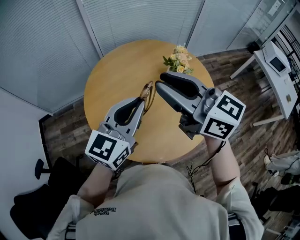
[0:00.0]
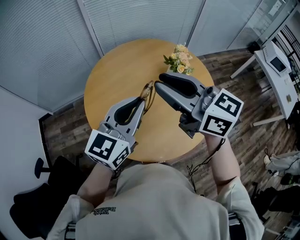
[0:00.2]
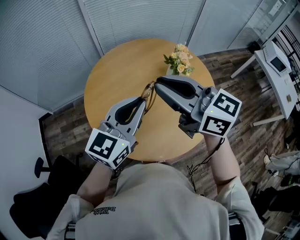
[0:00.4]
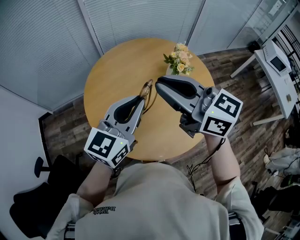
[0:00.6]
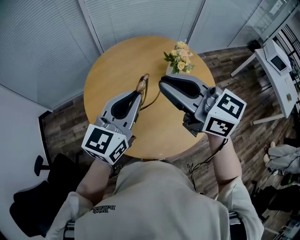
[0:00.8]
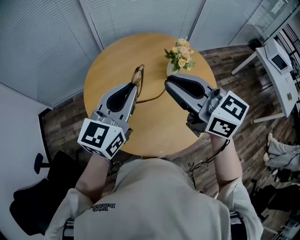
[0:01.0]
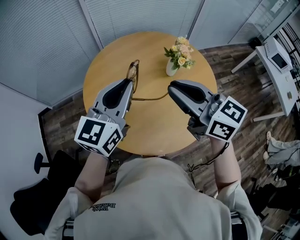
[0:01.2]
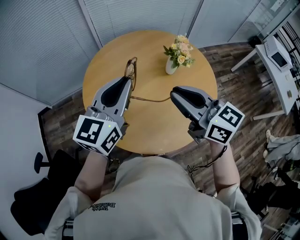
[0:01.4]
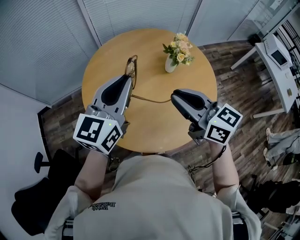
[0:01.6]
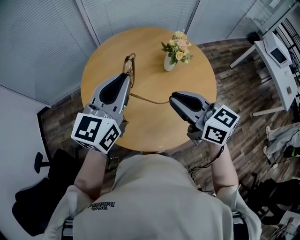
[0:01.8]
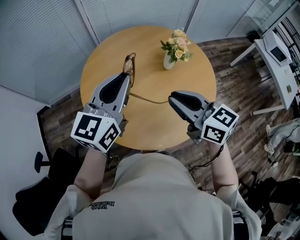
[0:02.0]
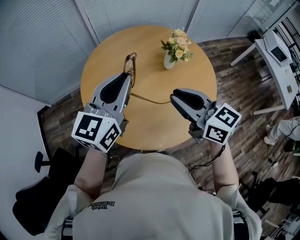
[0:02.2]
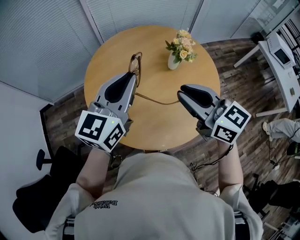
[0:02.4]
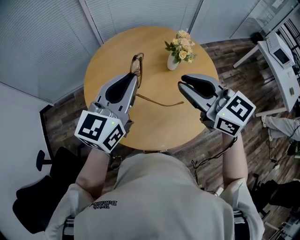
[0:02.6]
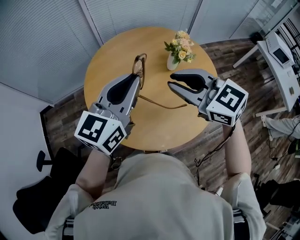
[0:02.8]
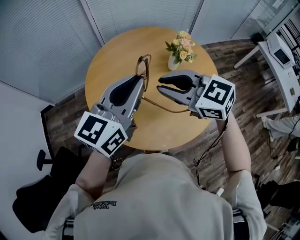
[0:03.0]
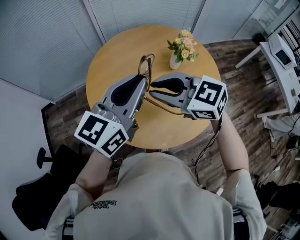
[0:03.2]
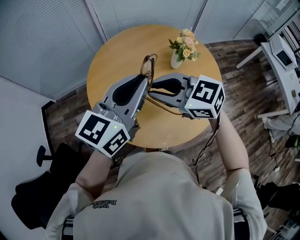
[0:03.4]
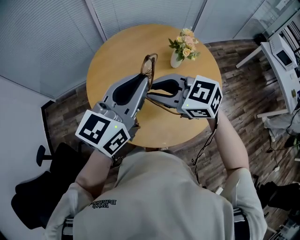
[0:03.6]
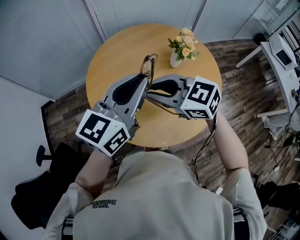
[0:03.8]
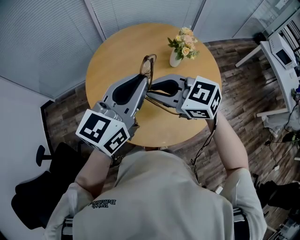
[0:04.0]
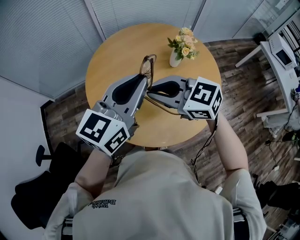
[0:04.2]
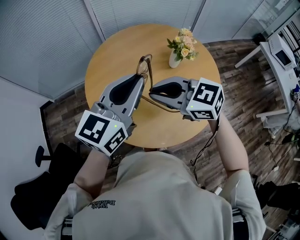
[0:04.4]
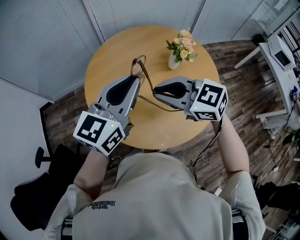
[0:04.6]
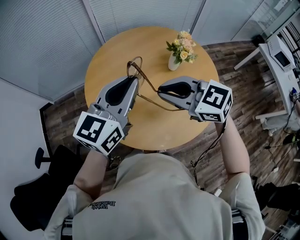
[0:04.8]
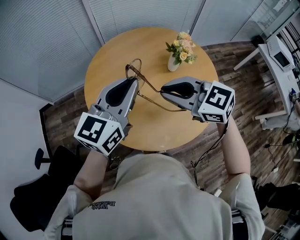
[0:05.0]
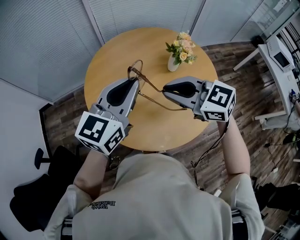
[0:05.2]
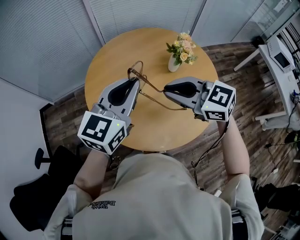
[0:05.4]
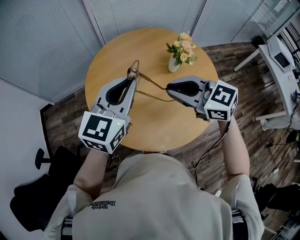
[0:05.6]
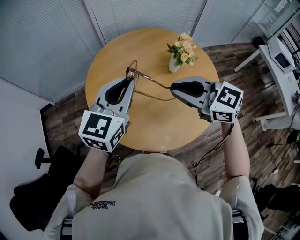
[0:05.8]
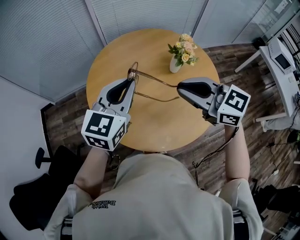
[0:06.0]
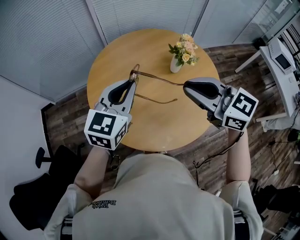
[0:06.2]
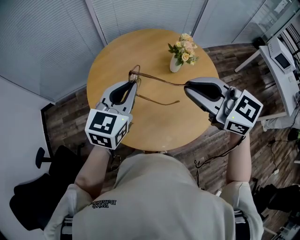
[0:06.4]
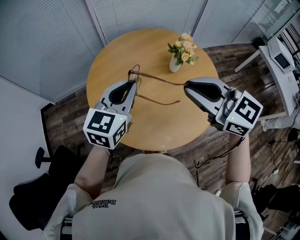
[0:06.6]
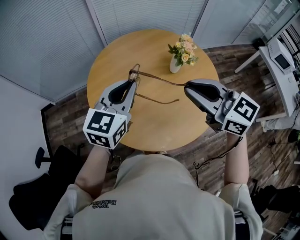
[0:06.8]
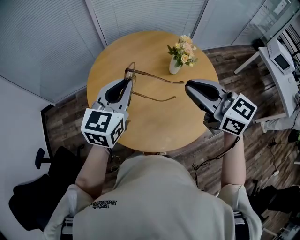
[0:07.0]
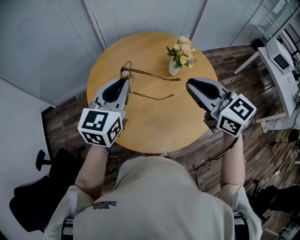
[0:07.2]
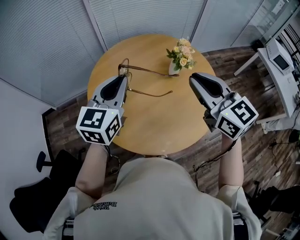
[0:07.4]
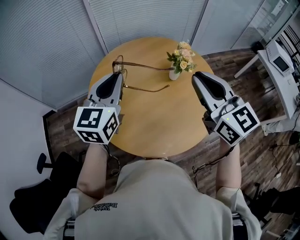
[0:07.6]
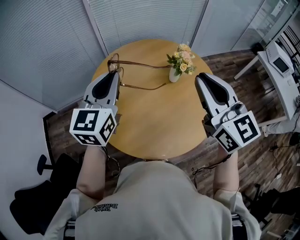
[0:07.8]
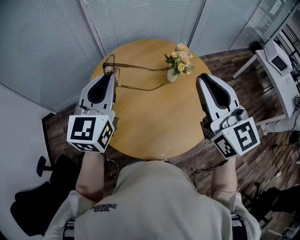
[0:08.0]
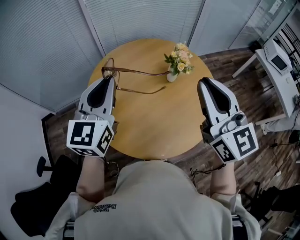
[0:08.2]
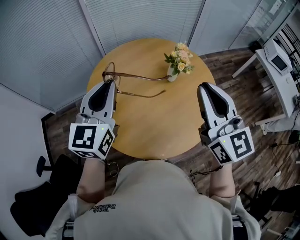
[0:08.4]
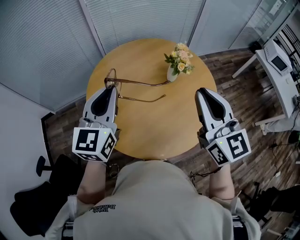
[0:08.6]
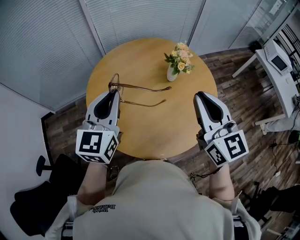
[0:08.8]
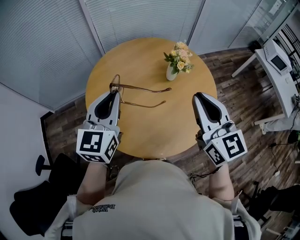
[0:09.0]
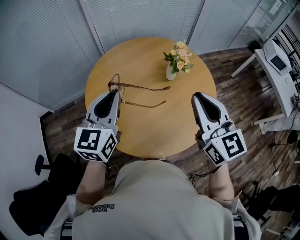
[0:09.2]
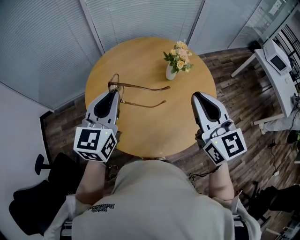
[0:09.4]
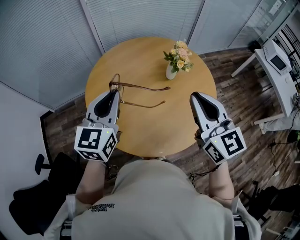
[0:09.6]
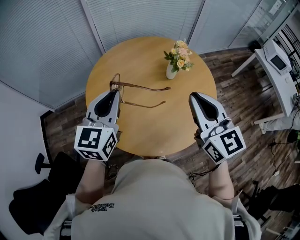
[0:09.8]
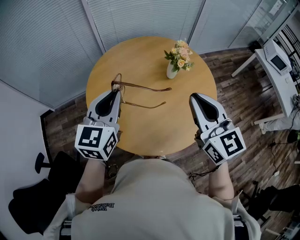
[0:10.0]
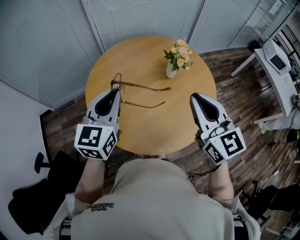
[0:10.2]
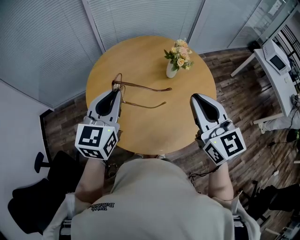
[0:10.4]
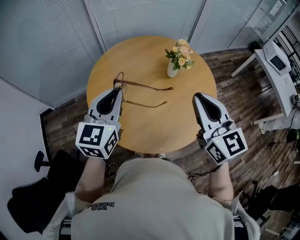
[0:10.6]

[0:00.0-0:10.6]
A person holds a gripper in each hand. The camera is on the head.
0.0 to 1.6 s: The right gripper shifts about 10 cm downward.
1.6 to 3.0 s: The right gripper goes roughly 5 cm to the left, and rotates approximately 30 degrees.
3.0 to 4.6 s: The grippers make only small movements.
4.6 to 6.0 s: The right gripper heads to the right, covering approximately 5 cm.
6.0 to 7.6 s: The right gripper travels upward and to the right by some 10 cm, and changes its angle by some 30 degrees. Meanwhile the left gripper changes place by about 5 cm.
7.6 to 9.0 s: The right gripper changes place by some 5 cm.
9.0 to 10.6 s: The grippers move only a little.

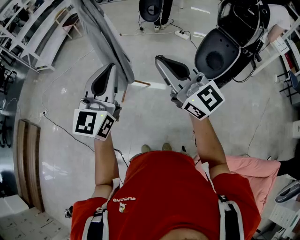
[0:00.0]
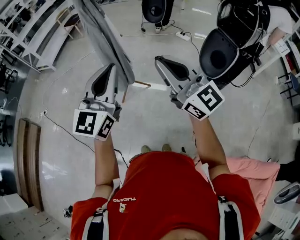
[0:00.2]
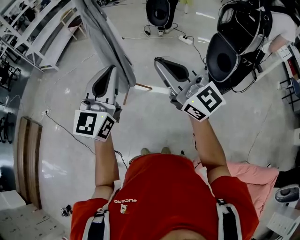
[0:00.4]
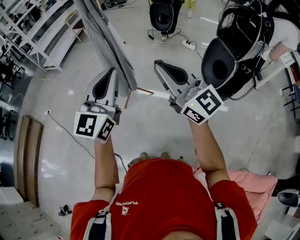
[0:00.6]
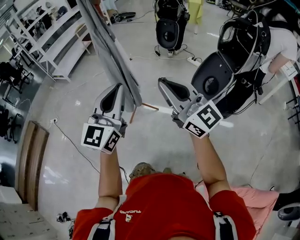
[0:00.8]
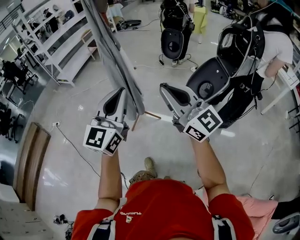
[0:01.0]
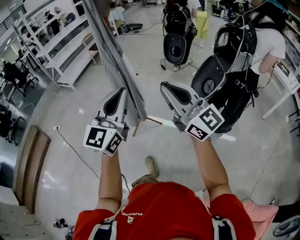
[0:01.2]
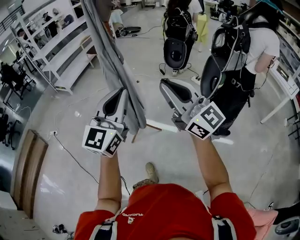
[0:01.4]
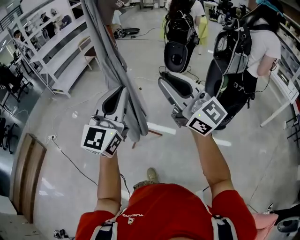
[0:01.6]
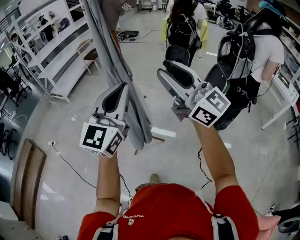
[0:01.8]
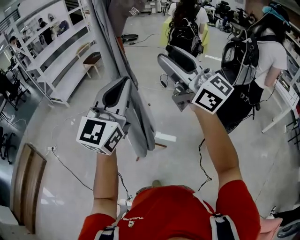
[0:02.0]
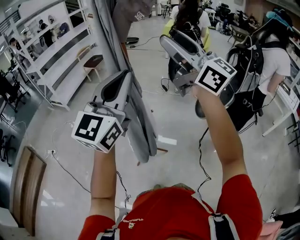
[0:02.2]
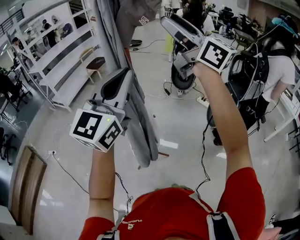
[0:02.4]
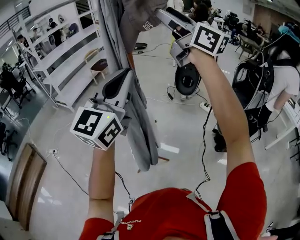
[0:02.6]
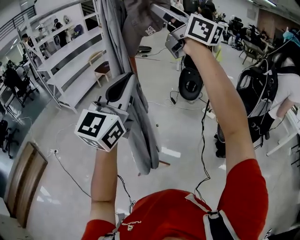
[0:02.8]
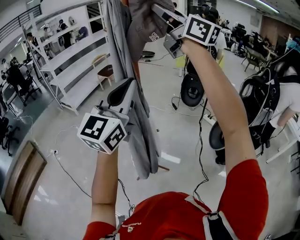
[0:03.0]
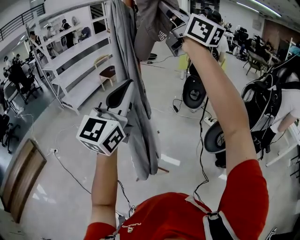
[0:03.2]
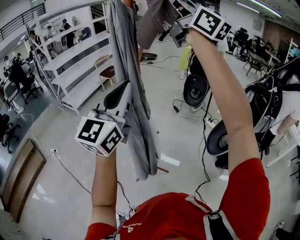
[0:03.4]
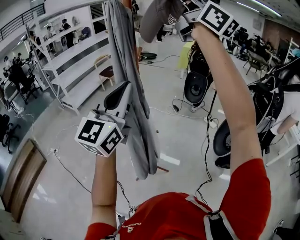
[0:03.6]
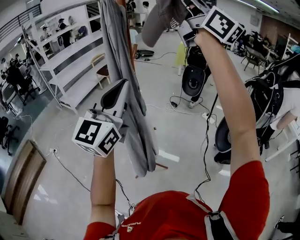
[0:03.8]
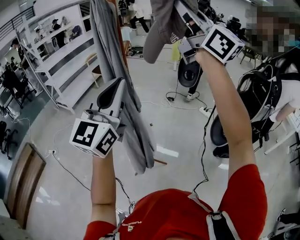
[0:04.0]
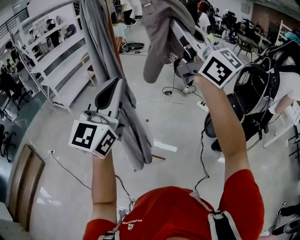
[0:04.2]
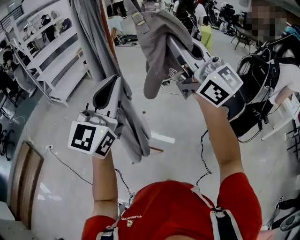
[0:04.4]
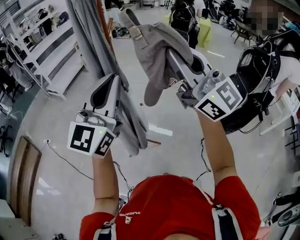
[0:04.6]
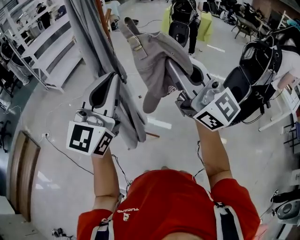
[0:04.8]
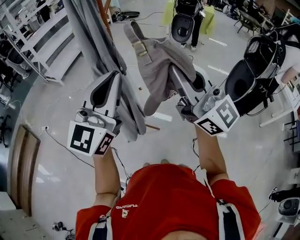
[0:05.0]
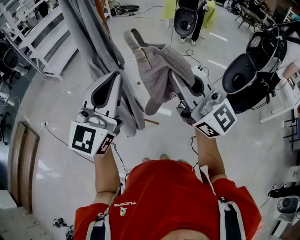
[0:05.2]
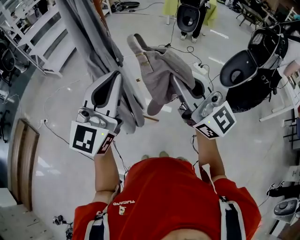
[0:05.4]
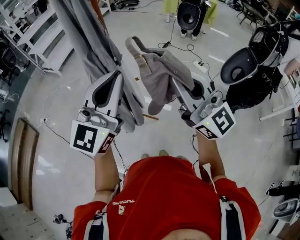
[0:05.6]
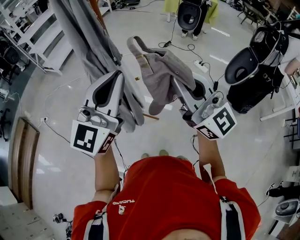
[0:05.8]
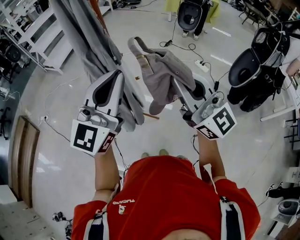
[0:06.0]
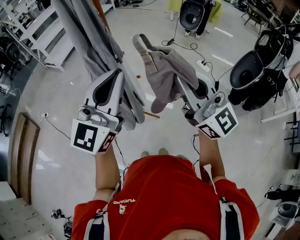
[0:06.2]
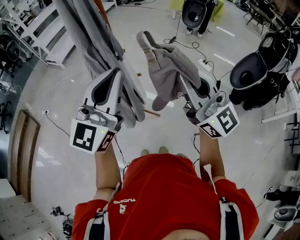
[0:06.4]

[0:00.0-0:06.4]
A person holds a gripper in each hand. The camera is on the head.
0.0 to 1.6 s: Both grippers move forward and upward, roughly 20 cm.
1.6 to 3.2 s: The right gripper heads forward and upward, covering some 50 cm, and opens, then closes once more. The left gripper is displaced forward and upward by roughly 25 cm.
3.2 to 4.8 s: The left gripper travels downward by approximately 10 cm. The right gripper shifts roughly 30 cm downward and backward.
4.8 to 6.4 s: The right gripper goes about 15 cm downward; the left gripper moves downward, some 10 cm.

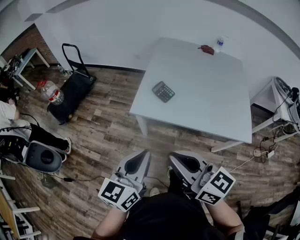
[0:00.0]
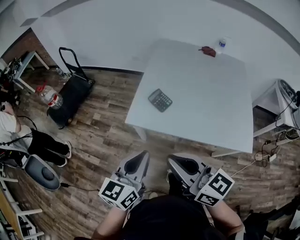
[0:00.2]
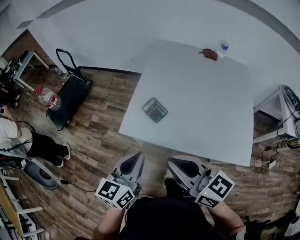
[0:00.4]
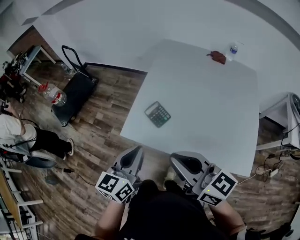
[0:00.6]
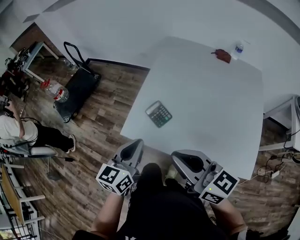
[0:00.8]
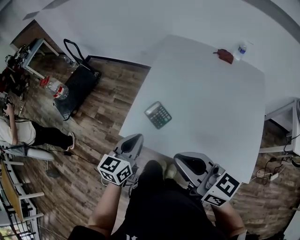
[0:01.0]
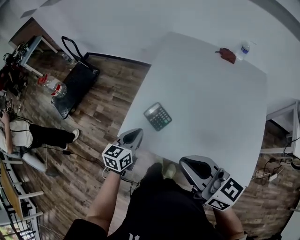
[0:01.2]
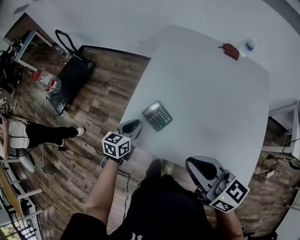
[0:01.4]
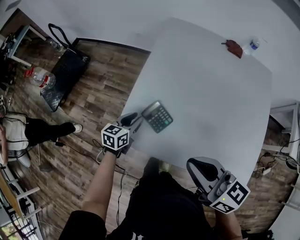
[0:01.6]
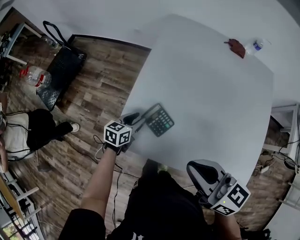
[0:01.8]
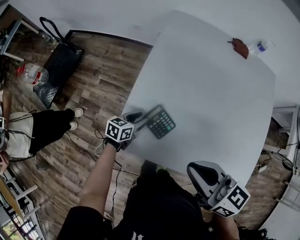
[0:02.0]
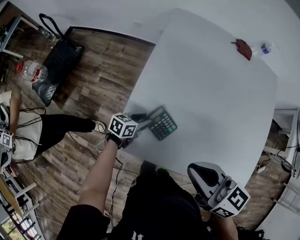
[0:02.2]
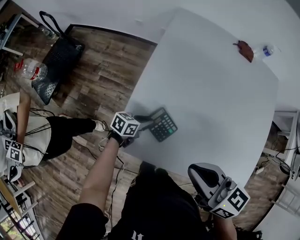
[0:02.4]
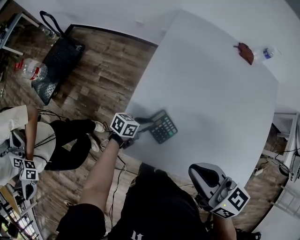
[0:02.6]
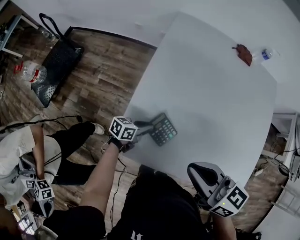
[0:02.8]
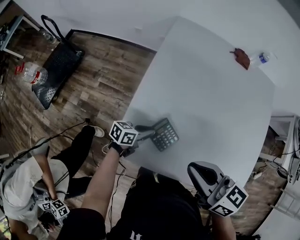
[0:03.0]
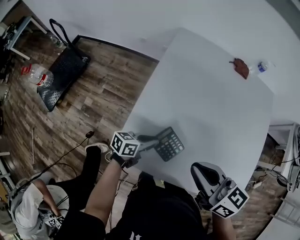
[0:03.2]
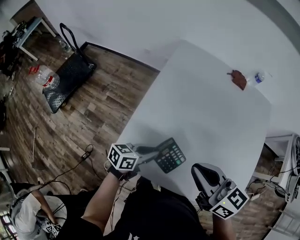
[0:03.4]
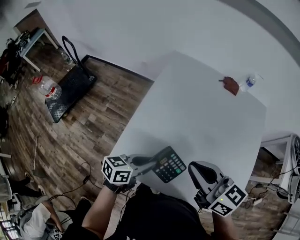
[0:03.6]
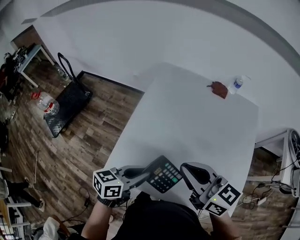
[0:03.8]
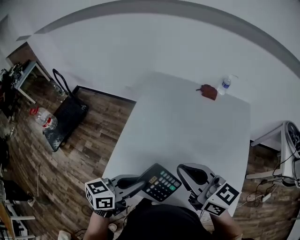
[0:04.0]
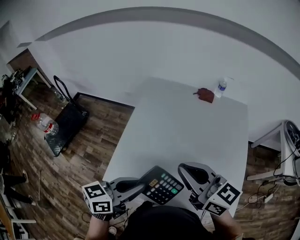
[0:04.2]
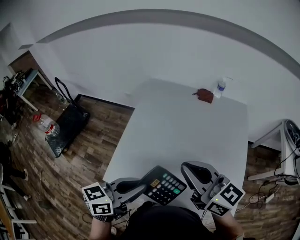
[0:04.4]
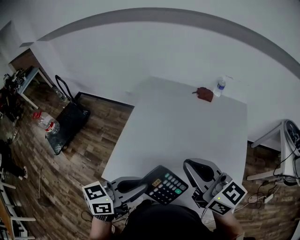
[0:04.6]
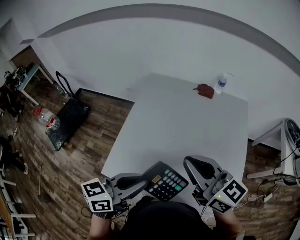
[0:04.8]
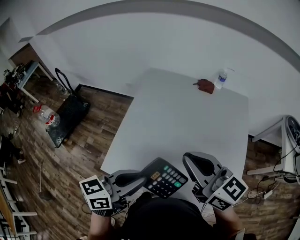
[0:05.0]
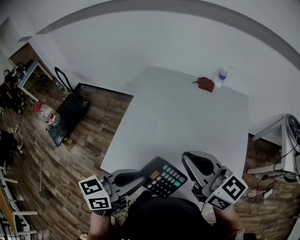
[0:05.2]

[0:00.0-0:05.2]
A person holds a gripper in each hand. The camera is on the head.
0.0 to 1.8 s: The left gripper is displaced forward and downward by roughly 50 cm, changes its angle by about 30 degrees, and opens; the right gripper shifts roughly 30 cm forward and to the right.
1.8 to 3.4 s: The right gripper travels forward by about 5 cm; the left gripper shifts approximately 15 cm upward and to the right, changes its angle by roughly 20 degrees, and closes up.
3.4 to 5.2 s: The left gripper is displaced upward by about 25 cm; the right gripper goes roughly 15 cm upward and to the right.

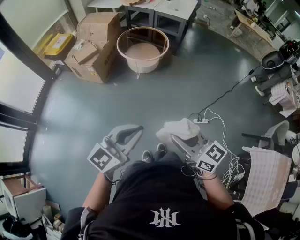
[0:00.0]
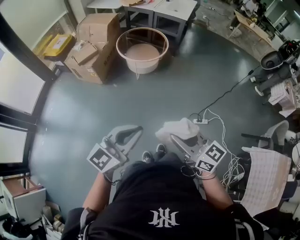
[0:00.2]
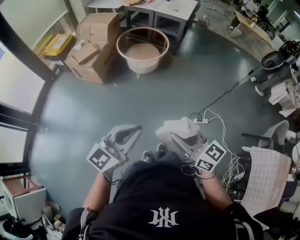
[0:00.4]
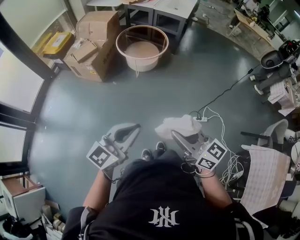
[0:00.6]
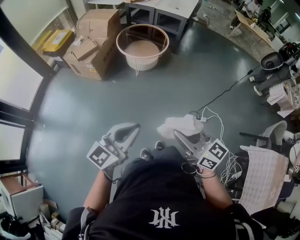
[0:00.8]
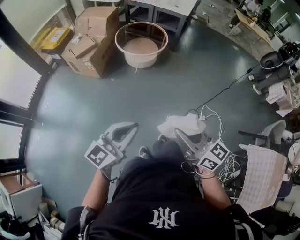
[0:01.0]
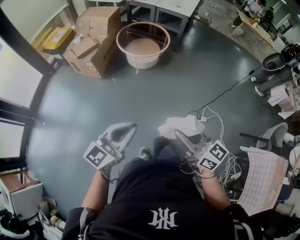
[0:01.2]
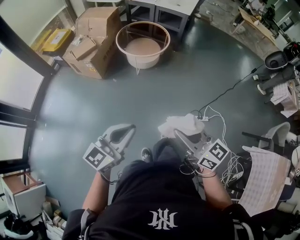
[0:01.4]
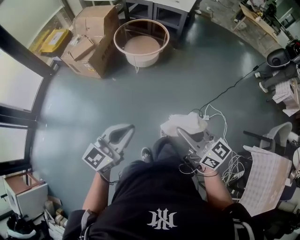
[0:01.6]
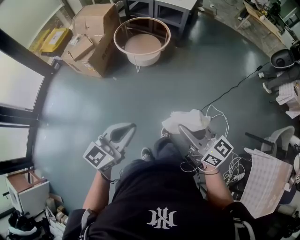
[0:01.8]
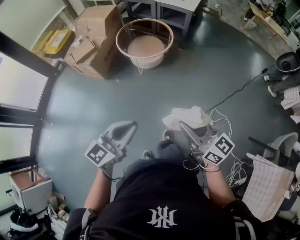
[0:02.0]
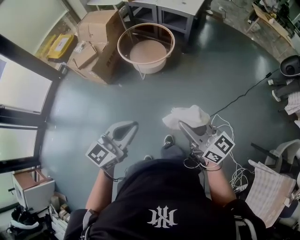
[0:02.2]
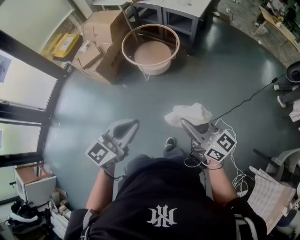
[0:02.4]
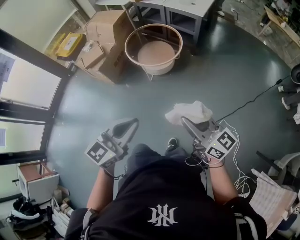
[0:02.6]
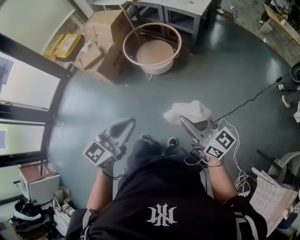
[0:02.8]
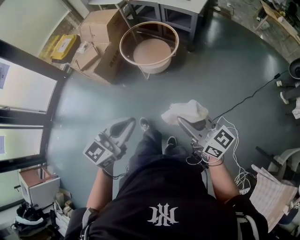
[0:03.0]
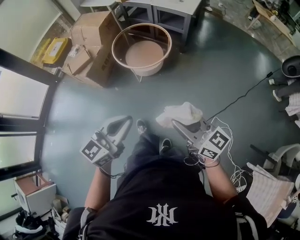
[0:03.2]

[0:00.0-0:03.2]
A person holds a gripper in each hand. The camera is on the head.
0.0 to 1.6 s: The left gripper changes place by approximately 5 cm, while the right gripper is displaced forward and to the right by roughly 10 cm.
1.6 to 3.2 s: The right gripper is displaced forward by approximately 25 cm. The left gripper travels forward and to the right by about 25 cm.
